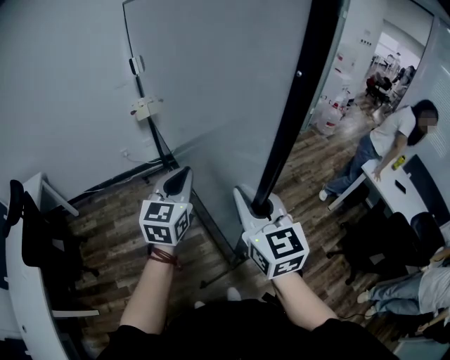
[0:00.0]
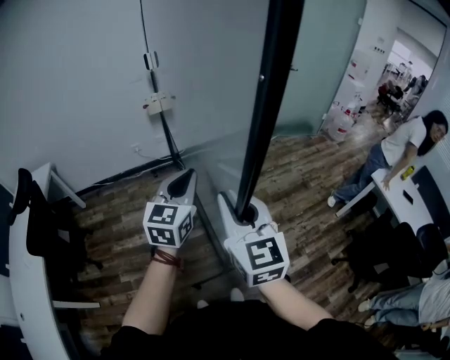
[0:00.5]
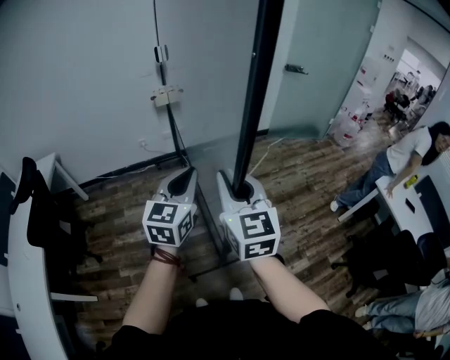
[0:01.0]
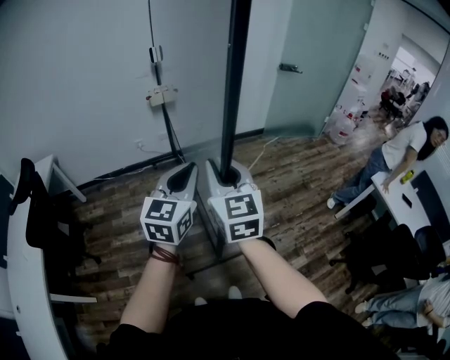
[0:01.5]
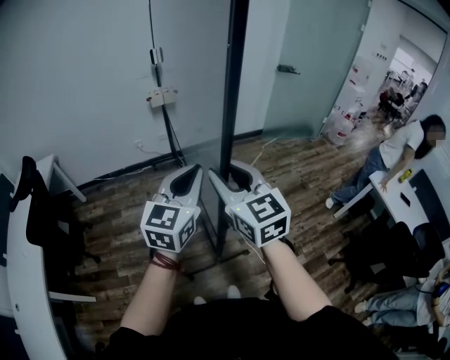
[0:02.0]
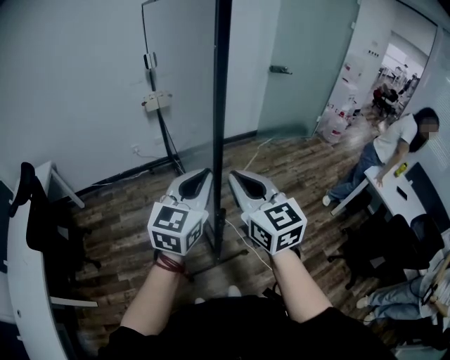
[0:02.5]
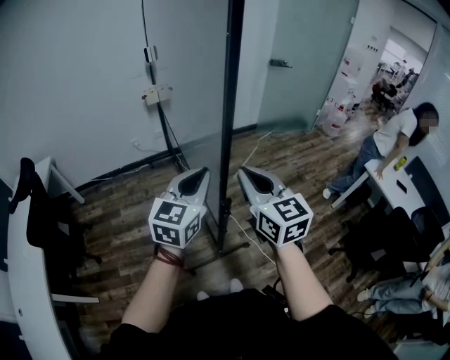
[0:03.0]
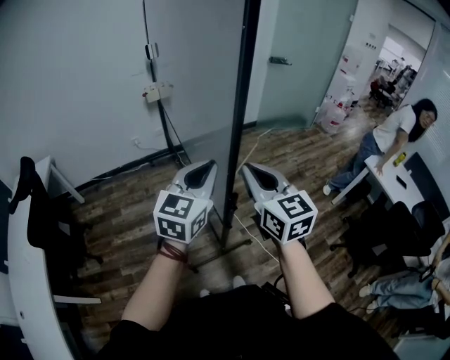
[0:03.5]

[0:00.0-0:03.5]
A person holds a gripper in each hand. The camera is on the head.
0:00.0 to 0:02.0: The left gripper moves backward, approximately 5 cm. The right gripper goes roughly 10 cm to the left.
0:02.0 to 0:03.5: The right gripper shifts by about 5 cm, and closes up.

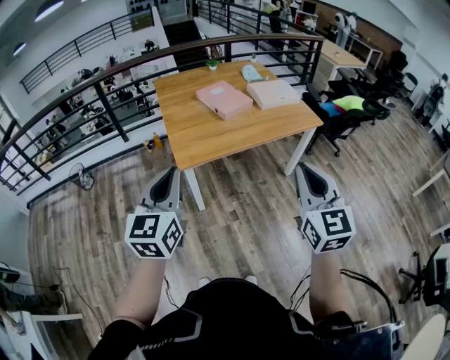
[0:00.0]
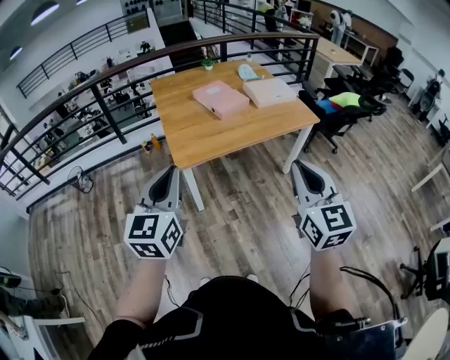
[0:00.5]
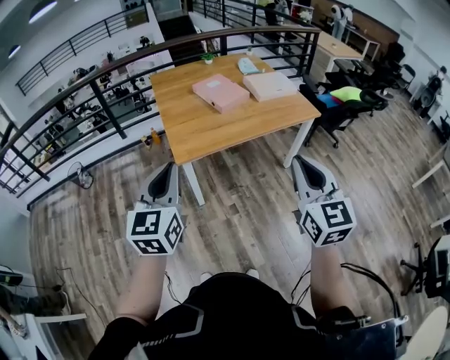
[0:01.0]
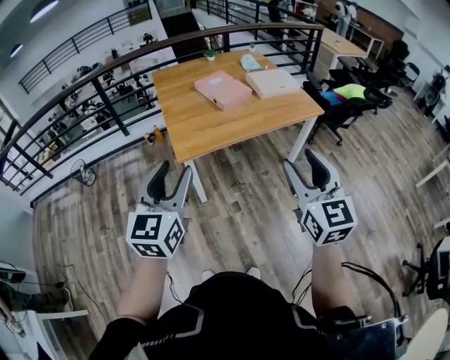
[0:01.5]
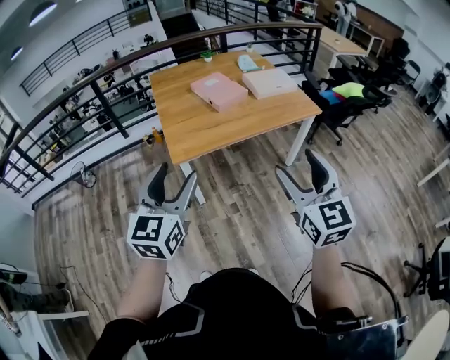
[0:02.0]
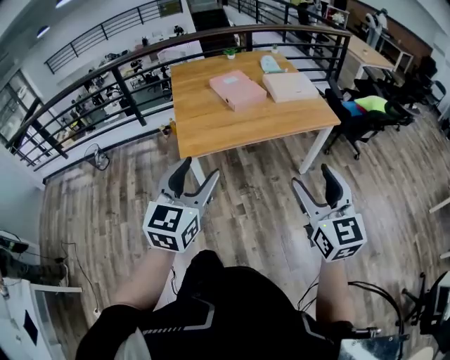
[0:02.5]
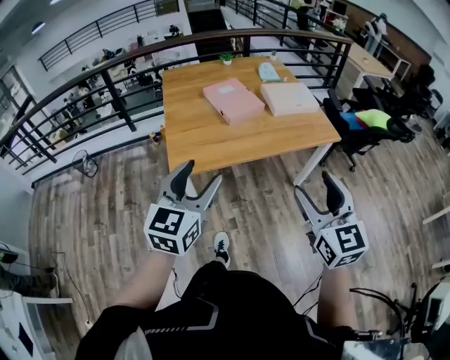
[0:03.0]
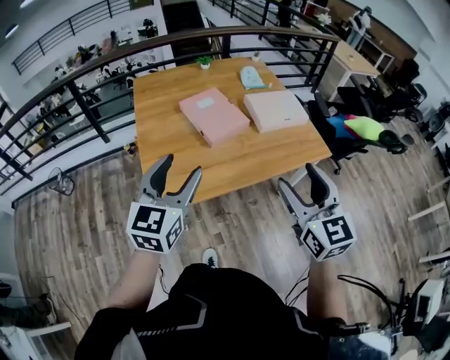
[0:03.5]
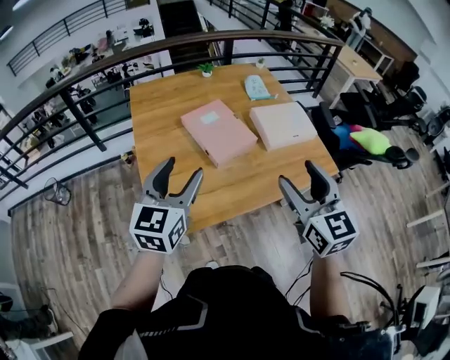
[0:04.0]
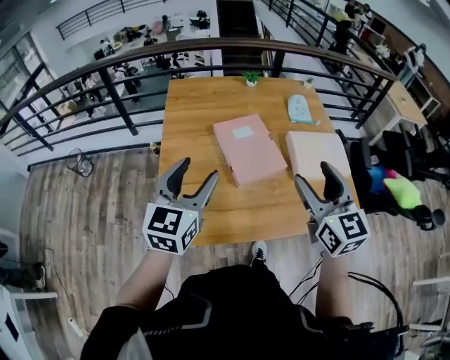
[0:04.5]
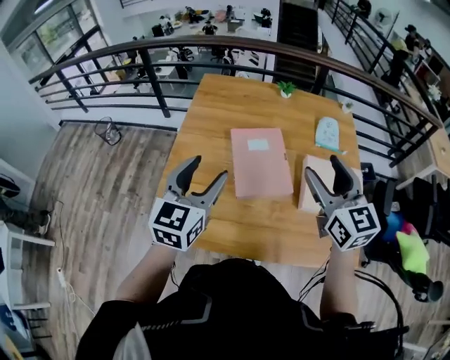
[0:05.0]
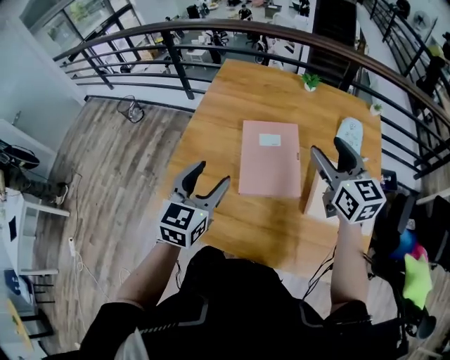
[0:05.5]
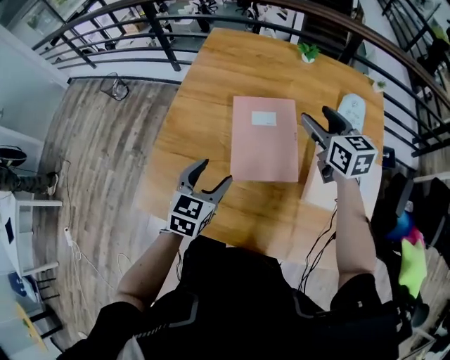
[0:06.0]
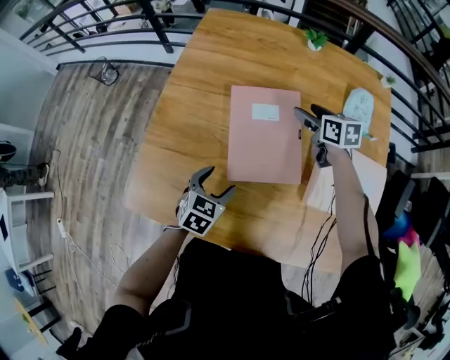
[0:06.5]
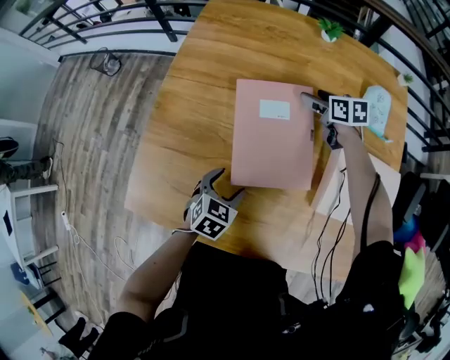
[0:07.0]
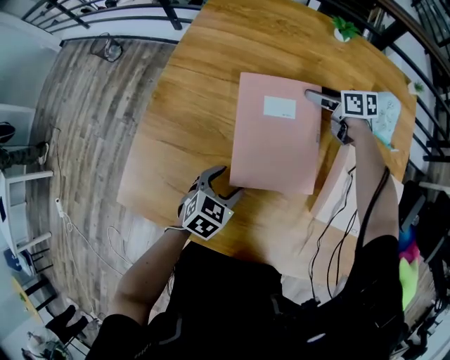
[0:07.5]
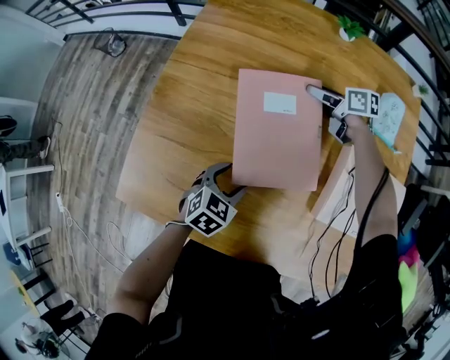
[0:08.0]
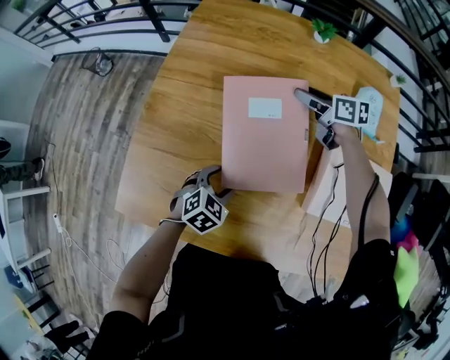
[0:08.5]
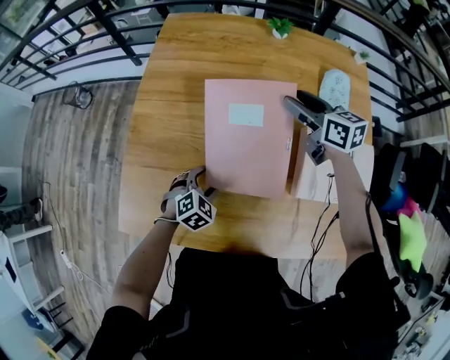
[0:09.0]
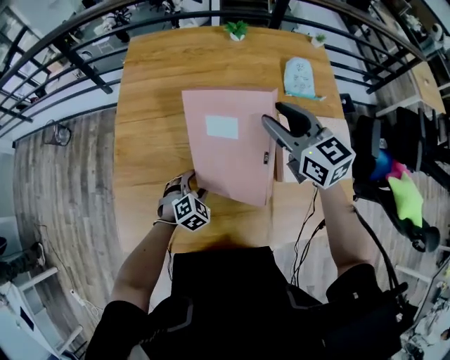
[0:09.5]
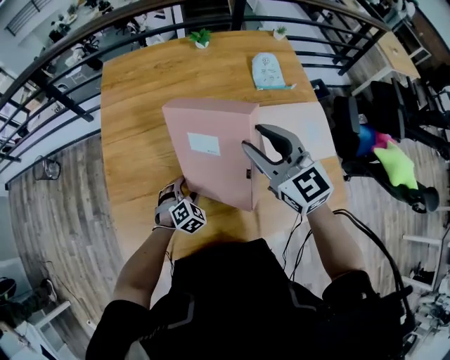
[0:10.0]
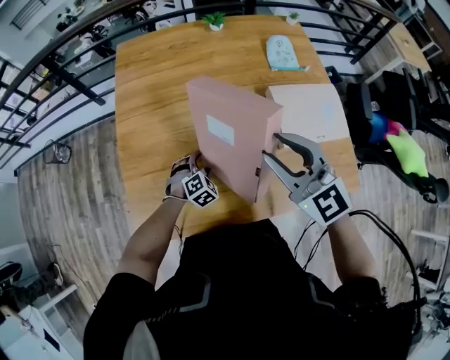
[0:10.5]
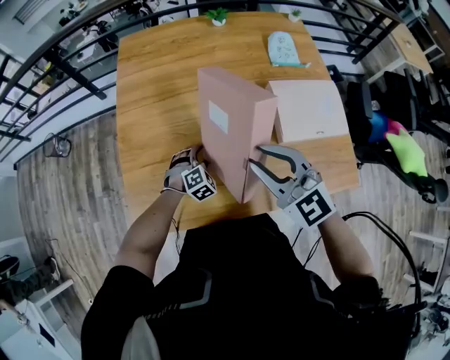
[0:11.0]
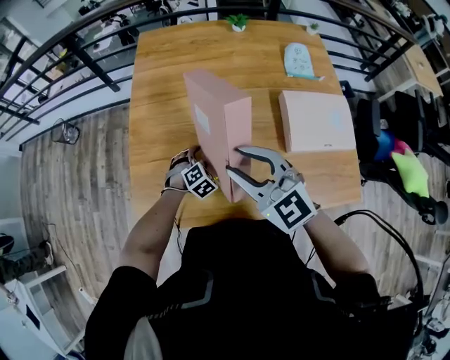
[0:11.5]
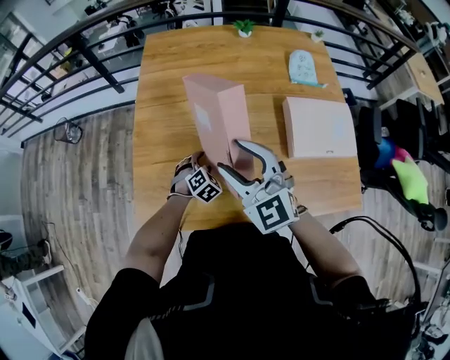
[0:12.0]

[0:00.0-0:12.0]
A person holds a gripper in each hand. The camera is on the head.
0:00.0 to 0:02.0: The left gripper is displaced to the right by roughly 5 cm, and opens its fingers. The right gripper opens its fingers.
0:02.0 to 0:04.0: Both grippers are carried forward, about 40 cm.
0:04.0 to 0:06.0: The left gripper shifts roughly 20 cm downward, and changes its angle by about 40 degrees. The right gripper shifts by some 50 cm, and turns by roughly 40 degrees.
0:06.0 to 0:08.0: The left gripper goes some 20 cm downward, and rotates about 20 degrees, while the right gripper goes about 30 cm downward and forward, and turns by some 40 degrees.
0:08.0 to 0:10.0: The left gripper twists about 40 degrees clockwise, seen from behind, while the right gripper is displaced backward and upward by approximately 40 cm, and changes its angle by about 60 degrees.
0:10.0 to 0:12.0: The right gripper goes roughly 15 cm to the left.

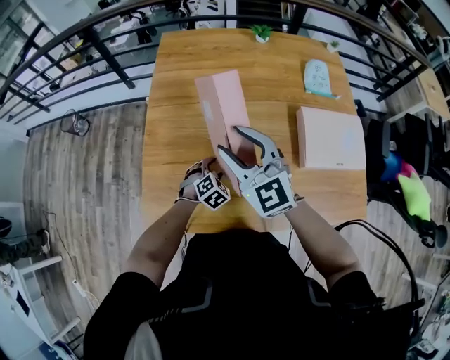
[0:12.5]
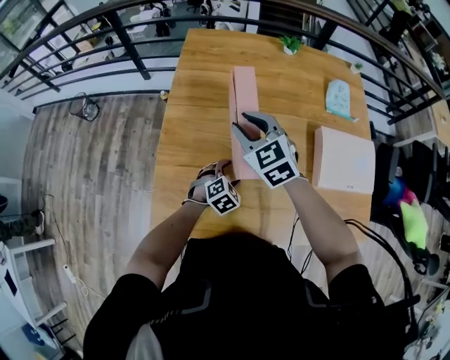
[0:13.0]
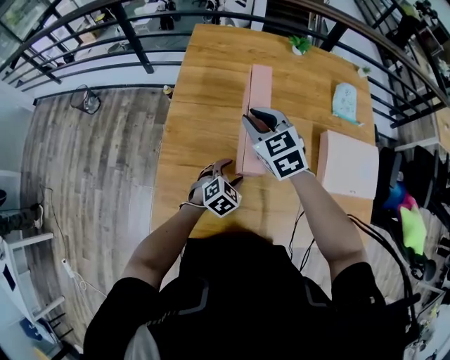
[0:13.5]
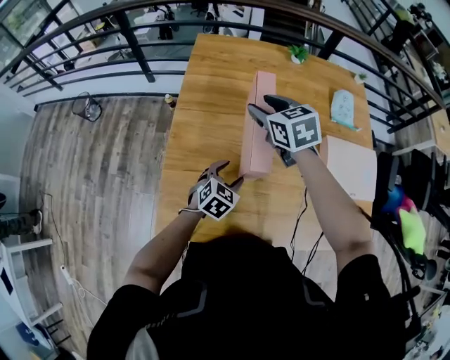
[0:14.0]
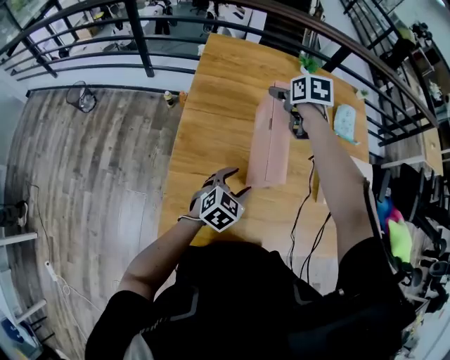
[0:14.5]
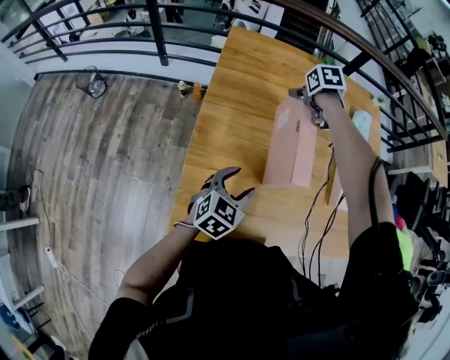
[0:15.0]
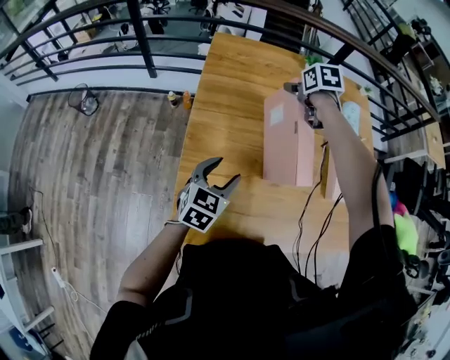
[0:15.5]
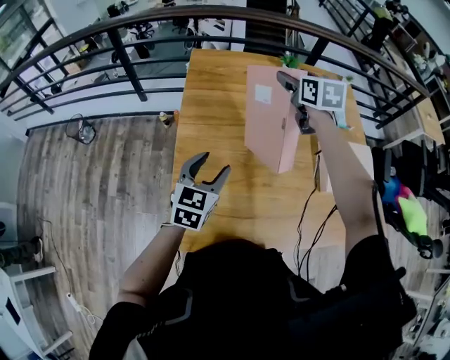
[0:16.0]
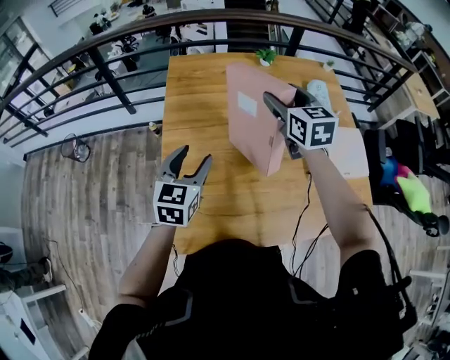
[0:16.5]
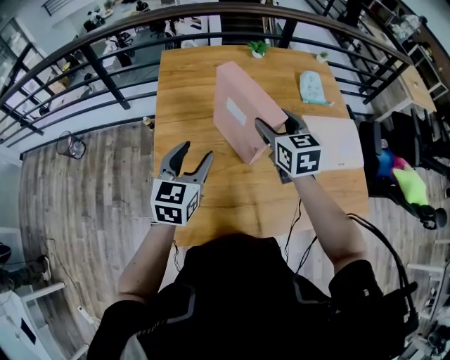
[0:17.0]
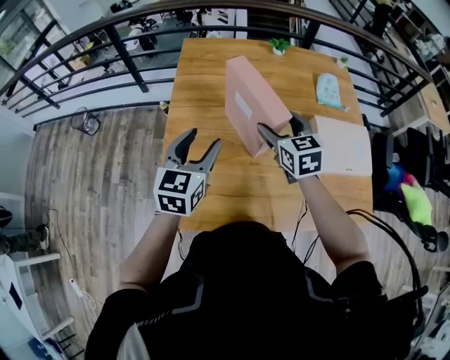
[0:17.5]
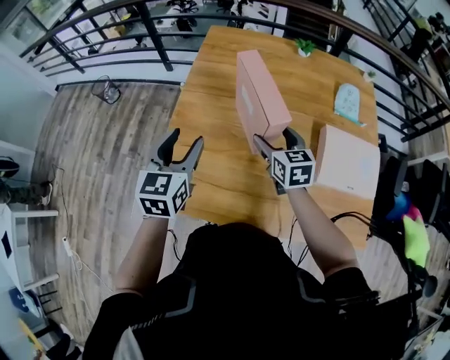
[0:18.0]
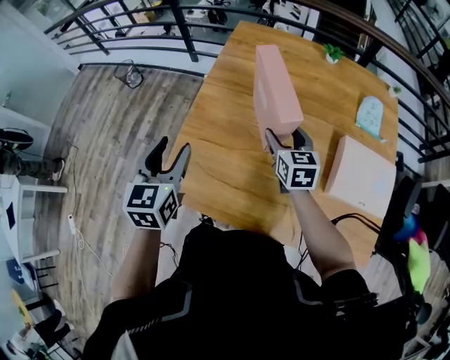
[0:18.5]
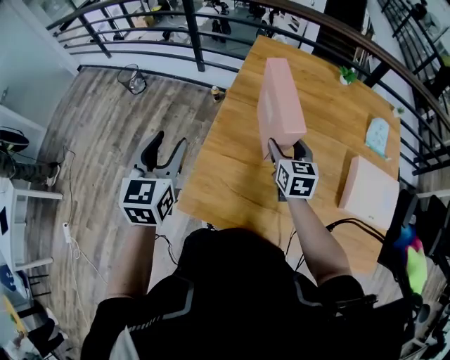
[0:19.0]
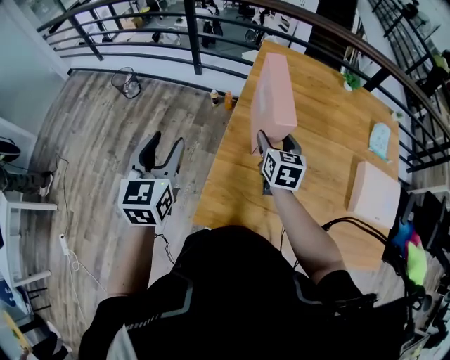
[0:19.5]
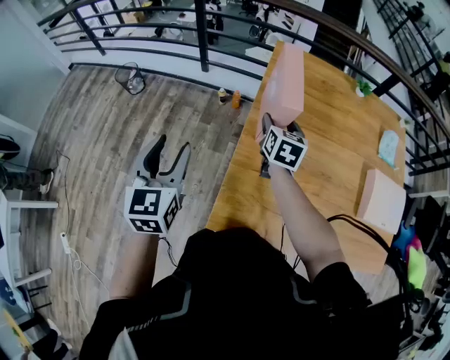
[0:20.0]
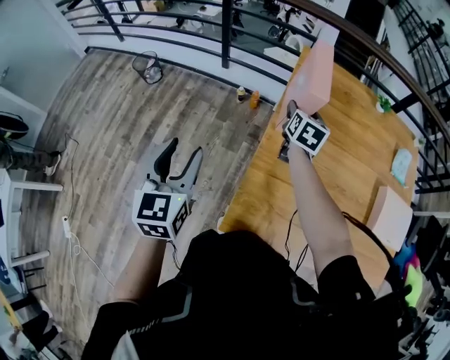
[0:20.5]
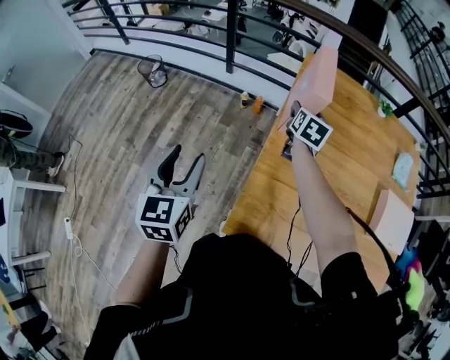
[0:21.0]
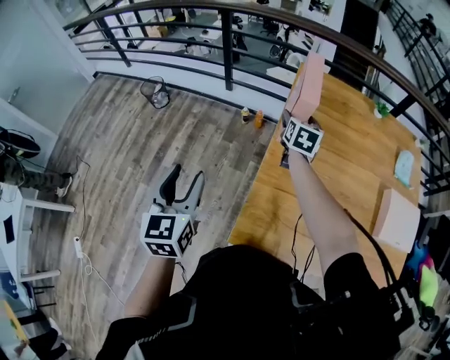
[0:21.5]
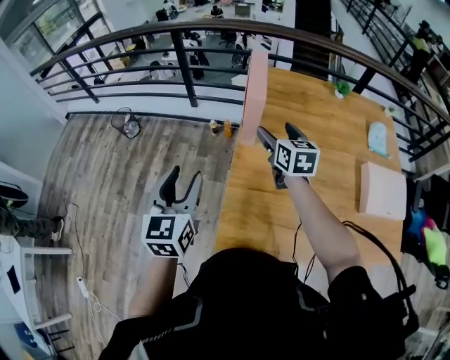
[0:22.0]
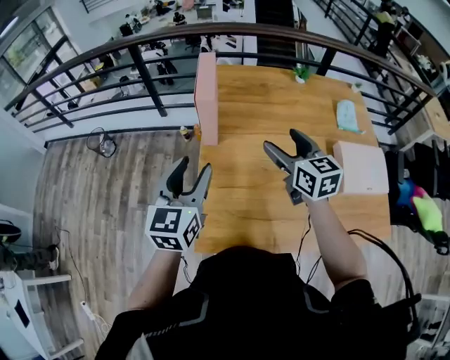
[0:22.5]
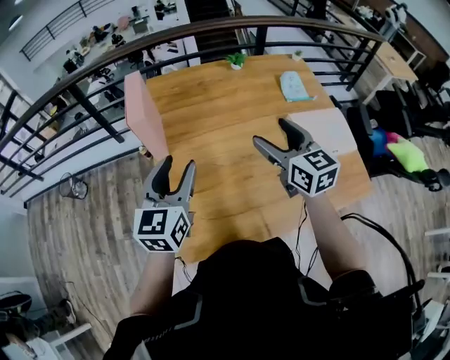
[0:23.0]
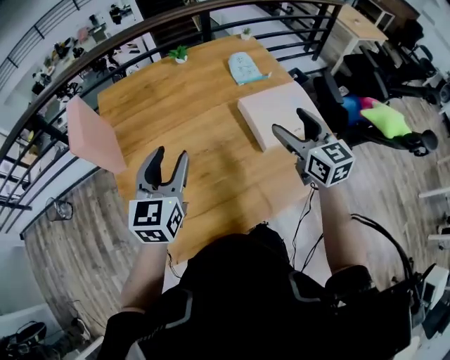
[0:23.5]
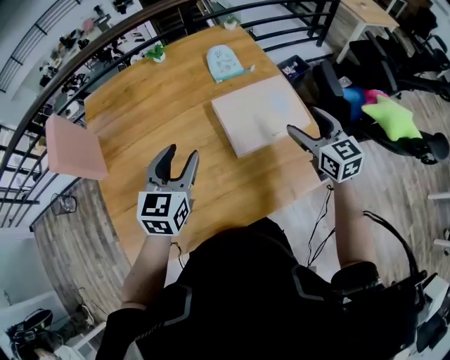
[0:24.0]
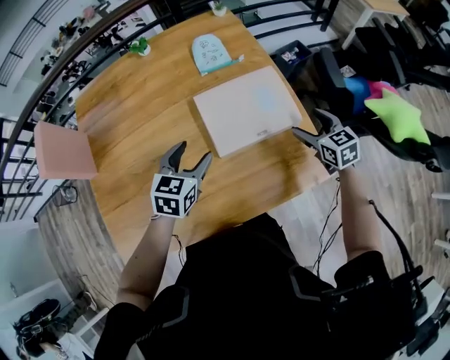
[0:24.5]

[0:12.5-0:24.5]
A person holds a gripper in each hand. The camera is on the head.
0:12.5 to 0:14.5: The right gripper travels forward by some 25 cm, points its fingers about 40 degrees further downward, and opens. Meanwhile the left gripper travels upward and to the left by approximately 15 cm, and changes its angle by some 30 degrees.
0:14.5 to 0:16.5: The right gripper goes roughly 20 cm upward, backward and to the right, and points its fingers roughly 30 degrees further upward, while the left gripper travels upward and to the left by some 15 cm, and turns by roughly 20 degrees.
0:16.5 to 0:18.5: The right gripper heads downward, covering approximately 15 cm, while the left gripper ends up approximately 15 cm from where it was, and rotates roughly 30 degrees.
0:18.5 to 0:20.5: The left gripper moves to the left, approximately 30 cm. Meanwhile the right gripper goes roughly 30 cm to the left and forward, and changes its angle by some 20 degrees.
0:20.5 to 0:22.5: The left gripper is displaced to the right by approximately 20 cm, and rotates about 20 degrees. Meanwhile the right gripper heads backward, to the right and upward, covering roughly 25 cm, and rotates roughly 20 degrees.
0:22.5 to 0:24.5: The pair of grippers is taken to the right, about 60 cm. The right gripper changes its angle by approximately 20 degrees. The left gripper changes its angle by approximately 40 degrees.
